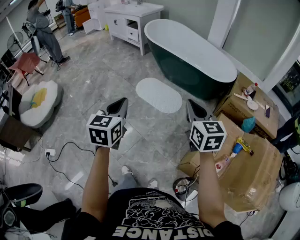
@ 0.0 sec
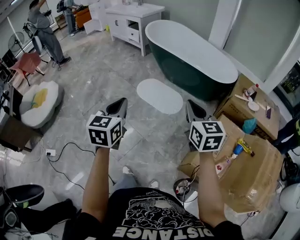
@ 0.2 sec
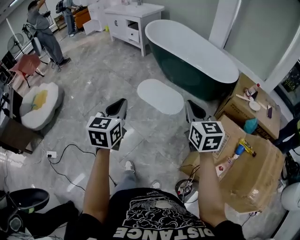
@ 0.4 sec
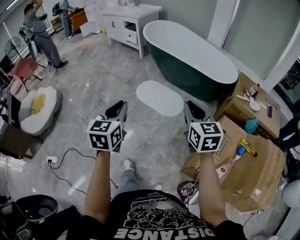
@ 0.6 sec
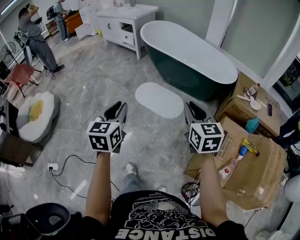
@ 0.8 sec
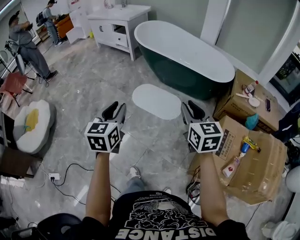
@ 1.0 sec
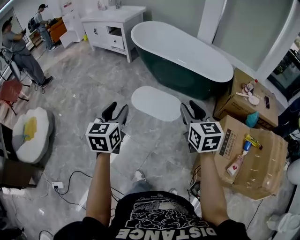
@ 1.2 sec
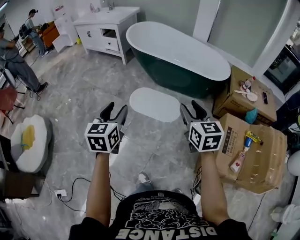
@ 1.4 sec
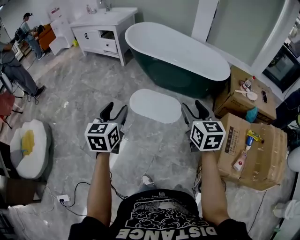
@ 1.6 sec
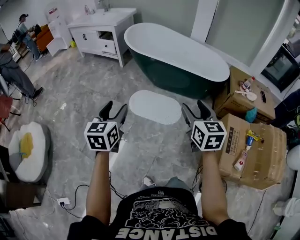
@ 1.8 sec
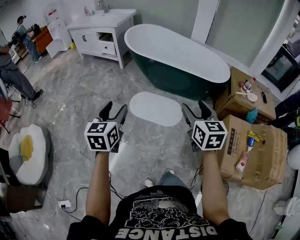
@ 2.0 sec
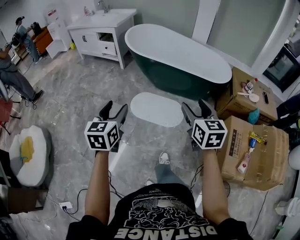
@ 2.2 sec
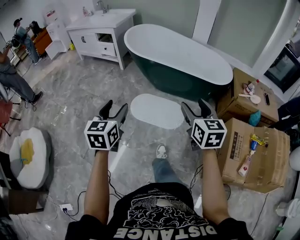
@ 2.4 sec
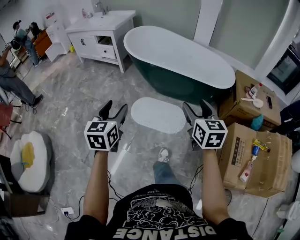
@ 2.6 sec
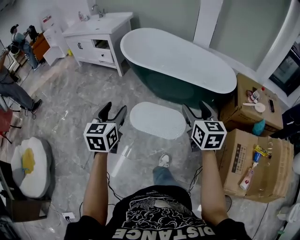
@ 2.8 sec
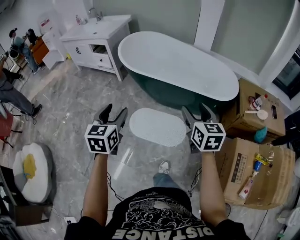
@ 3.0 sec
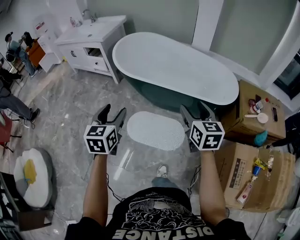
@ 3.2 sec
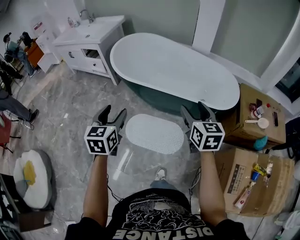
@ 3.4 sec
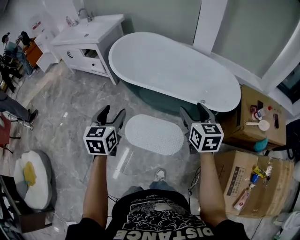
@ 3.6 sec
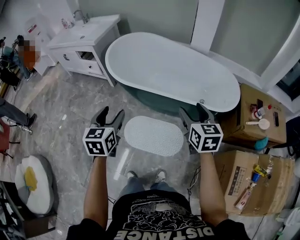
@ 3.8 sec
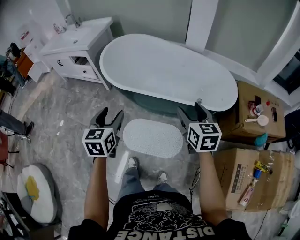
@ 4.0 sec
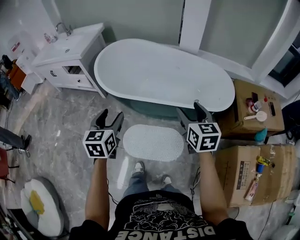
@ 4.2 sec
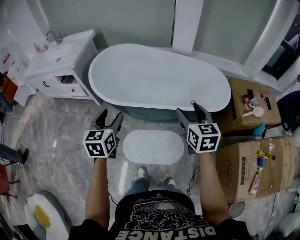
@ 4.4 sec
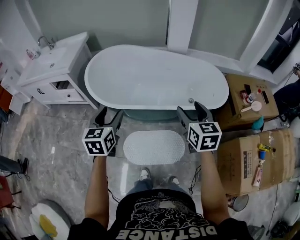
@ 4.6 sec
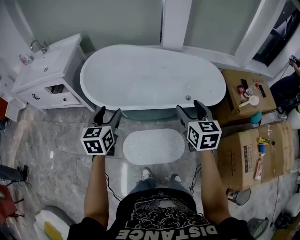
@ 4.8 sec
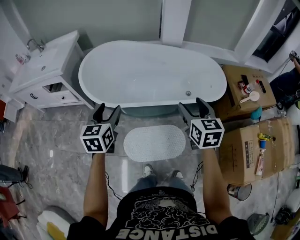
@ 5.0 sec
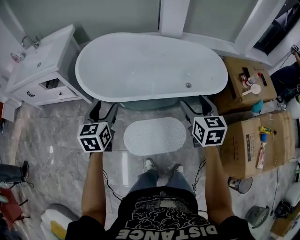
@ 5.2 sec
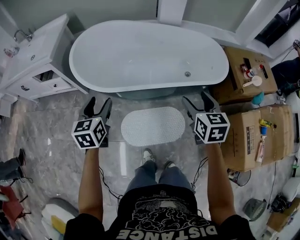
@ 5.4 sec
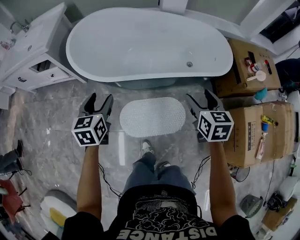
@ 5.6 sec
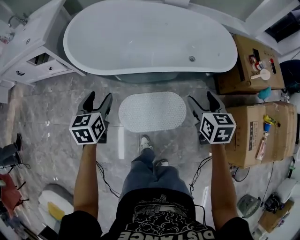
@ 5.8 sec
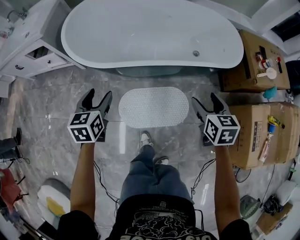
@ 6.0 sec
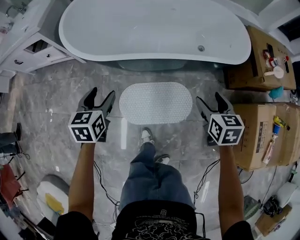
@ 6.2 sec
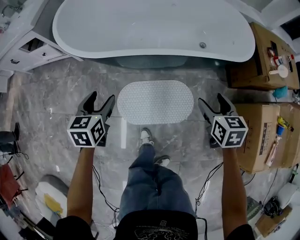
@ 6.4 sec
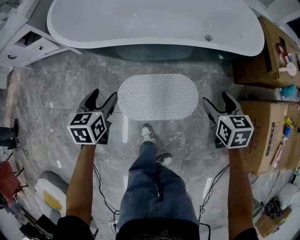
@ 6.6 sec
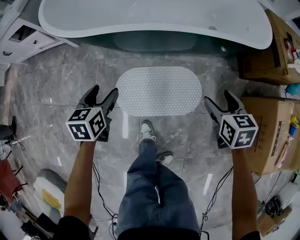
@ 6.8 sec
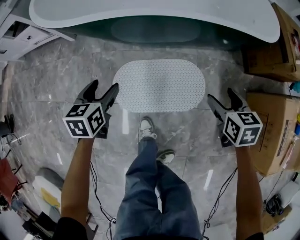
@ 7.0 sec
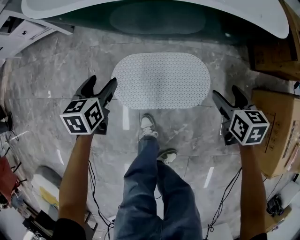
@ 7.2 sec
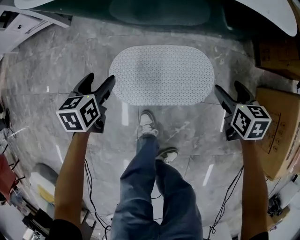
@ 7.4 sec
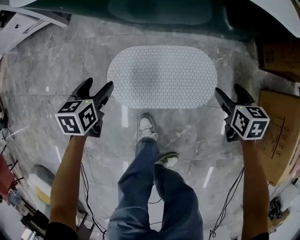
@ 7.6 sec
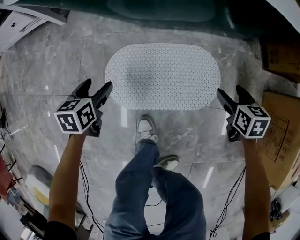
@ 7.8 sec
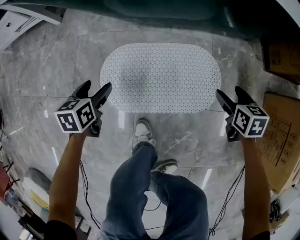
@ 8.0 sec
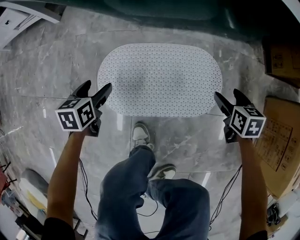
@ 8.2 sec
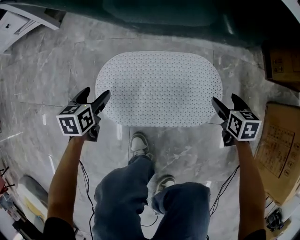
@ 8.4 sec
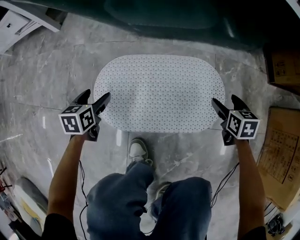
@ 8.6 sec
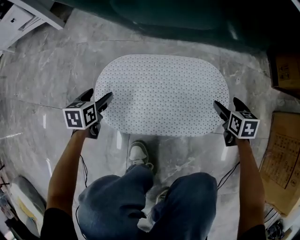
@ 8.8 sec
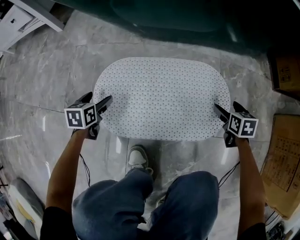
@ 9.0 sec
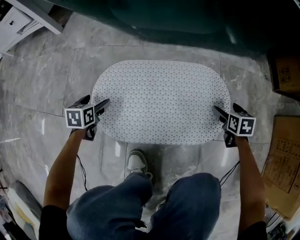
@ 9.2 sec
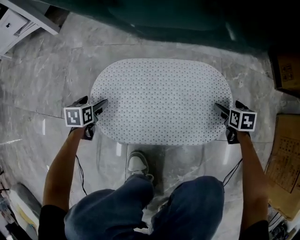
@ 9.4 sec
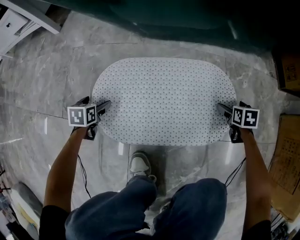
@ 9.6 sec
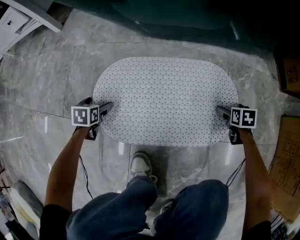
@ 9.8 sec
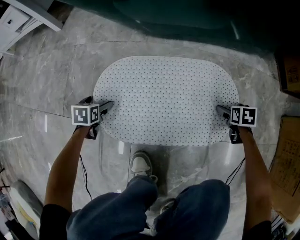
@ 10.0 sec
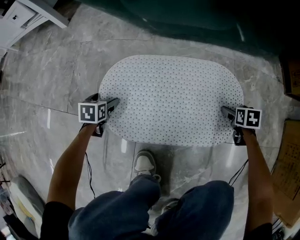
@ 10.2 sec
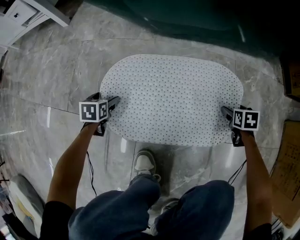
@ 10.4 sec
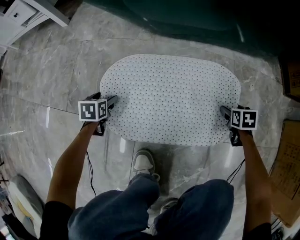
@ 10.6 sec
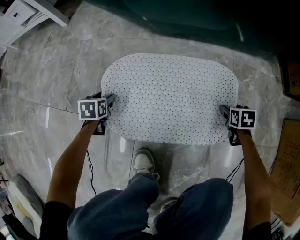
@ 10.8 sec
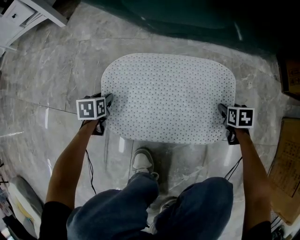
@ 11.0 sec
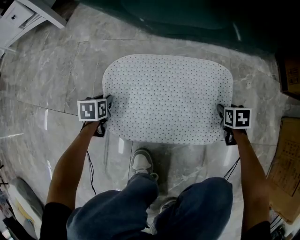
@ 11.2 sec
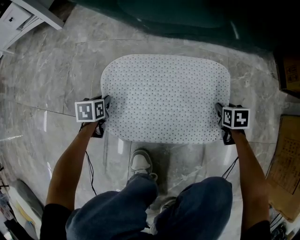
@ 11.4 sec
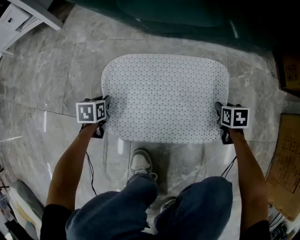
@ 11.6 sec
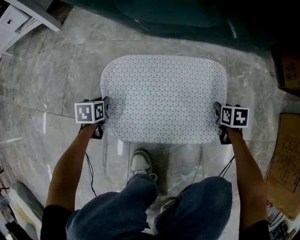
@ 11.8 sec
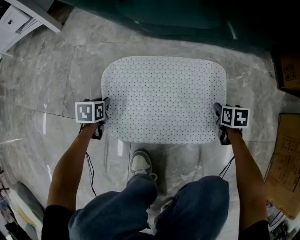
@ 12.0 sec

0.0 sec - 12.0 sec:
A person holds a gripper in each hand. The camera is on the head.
0.0 sec - 1.6 sec: Both grippers travel together forward and to the left, approximately 25 cm. The left gripper opens up. Meanwhile the right gripper opens up.
1.6 sec - 3.0 sec: The grippers both shift forward by about 25 cm.
3.0 sec - 4.4 sec: Both grippers move forward, approximately 25 cm.
4.4 sec - 6.0 sec: The grippers both shift downward by some 20 cm. The right gripper changes its angle by approximately 20 degrees.
6.0 sec - 7.6 sec: Both grippers move downward, roughly 40 cm.
7.6 sec - 9.0 sec: Both grippers move downward, roughly 25 cm.
9.0 sec - 10.4 sec: Both grippers move downward, about 10 cm.
10.4 sec - 12.0 sec: The left gripper closes up. Meanwhile the right gripper closes its fingers.

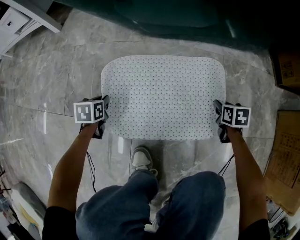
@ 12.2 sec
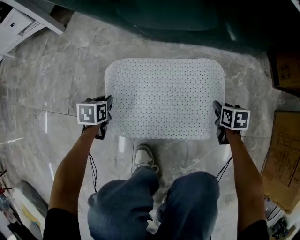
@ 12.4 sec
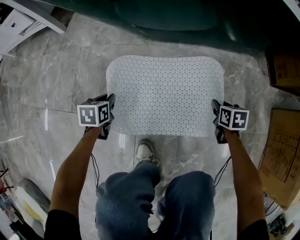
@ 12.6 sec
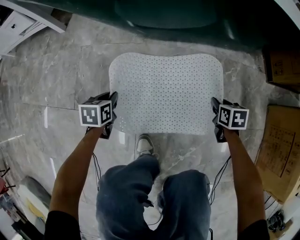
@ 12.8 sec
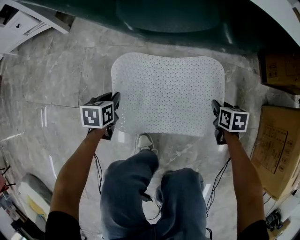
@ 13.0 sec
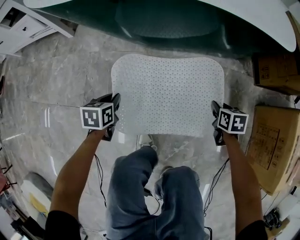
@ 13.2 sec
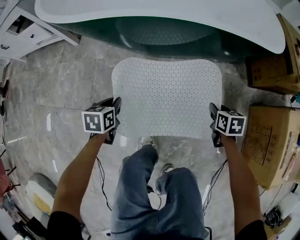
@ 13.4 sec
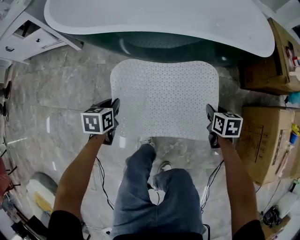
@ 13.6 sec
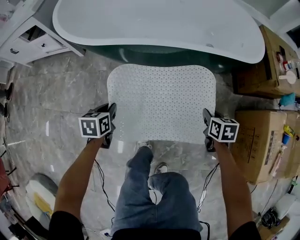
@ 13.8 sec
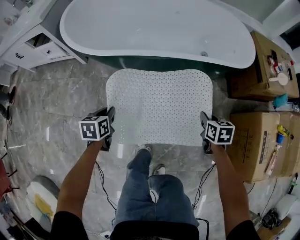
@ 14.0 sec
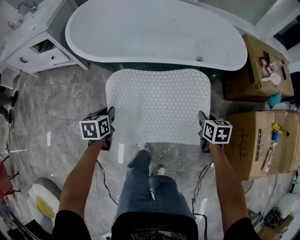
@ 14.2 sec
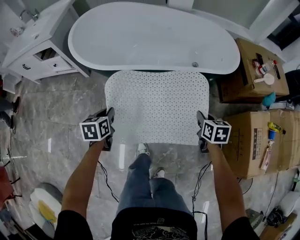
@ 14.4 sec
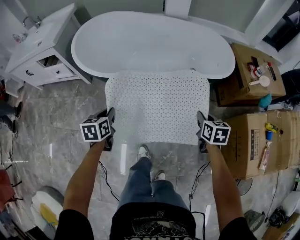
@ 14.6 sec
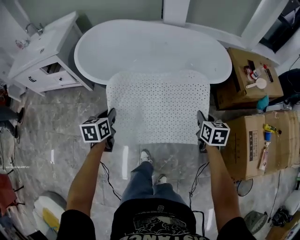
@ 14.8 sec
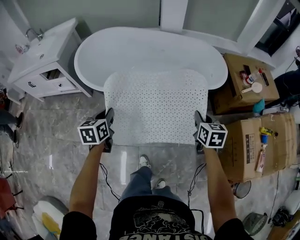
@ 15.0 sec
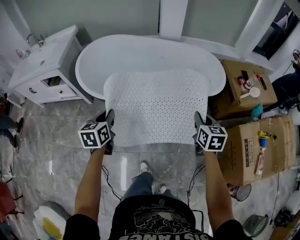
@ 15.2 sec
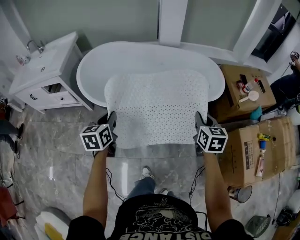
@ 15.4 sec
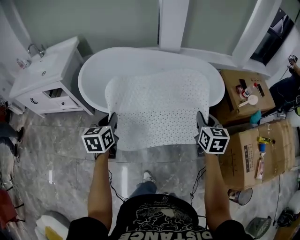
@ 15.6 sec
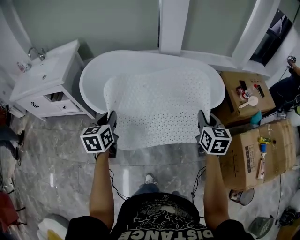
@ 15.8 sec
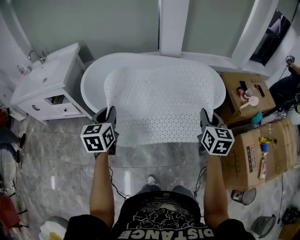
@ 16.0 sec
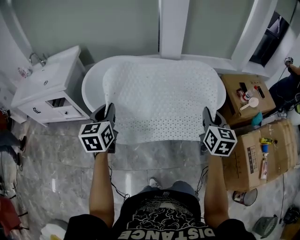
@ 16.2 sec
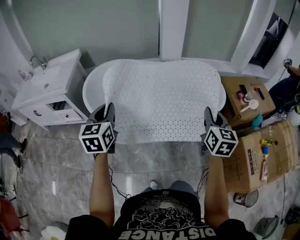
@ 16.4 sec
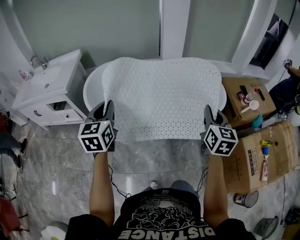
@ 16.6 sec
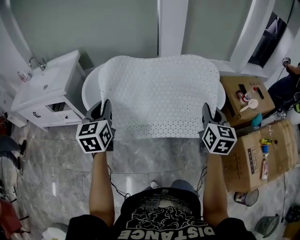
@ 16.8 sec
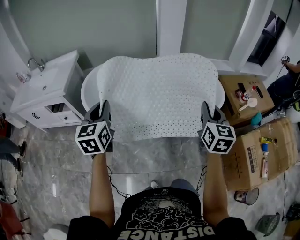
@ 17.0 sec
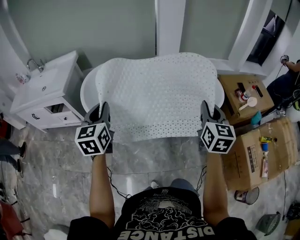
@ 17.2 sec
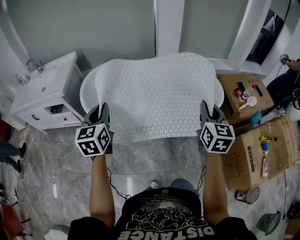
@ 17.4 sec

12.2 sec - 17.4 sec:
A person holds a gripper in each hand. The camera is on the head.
12.2 sec - 14.0 sec: Both grippers move upward, approximately 50 cm.
14.0 sec - 15.6 sec: The grippers both shift upward by approximately 35 cm. The left gripper rotates approximately 20 degrees. The right gripper turns by roughly 30 degrees.
15.6 sec - 17.4 sec: The left gripper is displaced upward and forward by about 15 cm, while the right gripper moves upward, some 10 cm.

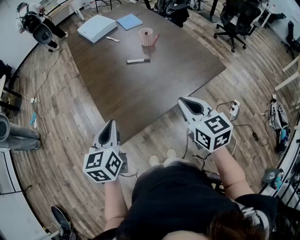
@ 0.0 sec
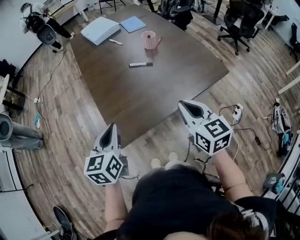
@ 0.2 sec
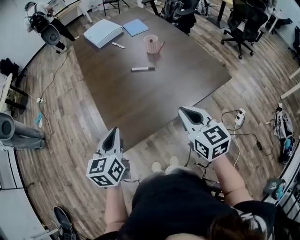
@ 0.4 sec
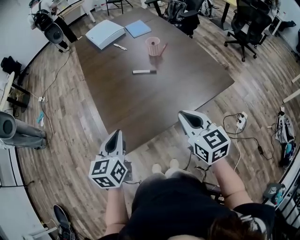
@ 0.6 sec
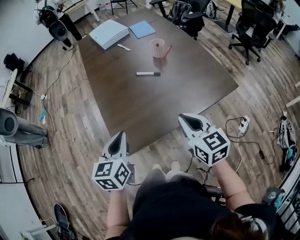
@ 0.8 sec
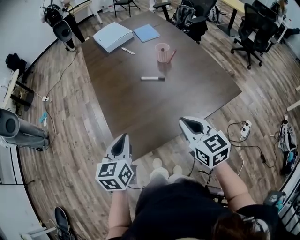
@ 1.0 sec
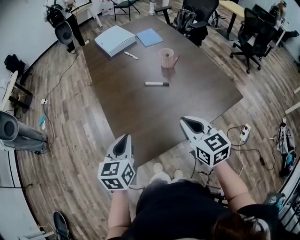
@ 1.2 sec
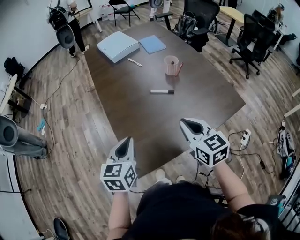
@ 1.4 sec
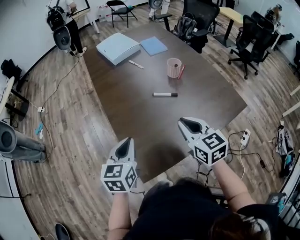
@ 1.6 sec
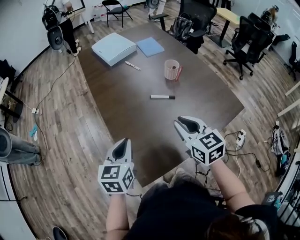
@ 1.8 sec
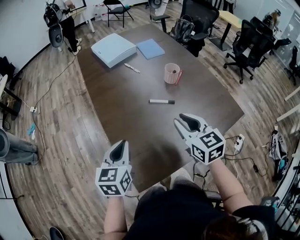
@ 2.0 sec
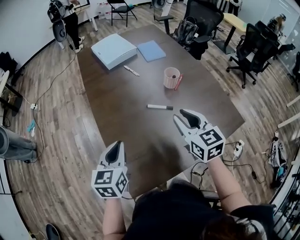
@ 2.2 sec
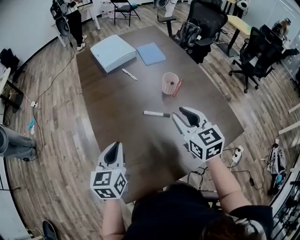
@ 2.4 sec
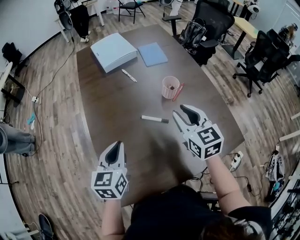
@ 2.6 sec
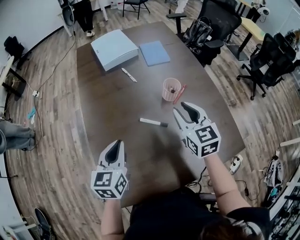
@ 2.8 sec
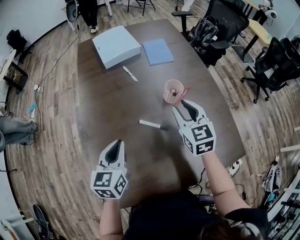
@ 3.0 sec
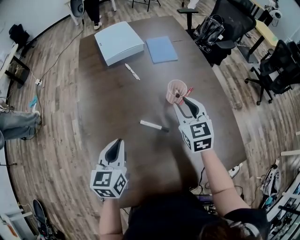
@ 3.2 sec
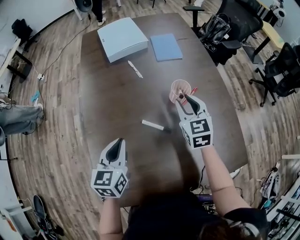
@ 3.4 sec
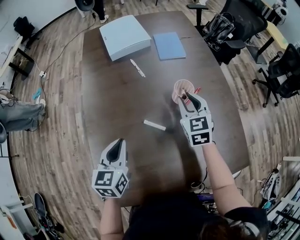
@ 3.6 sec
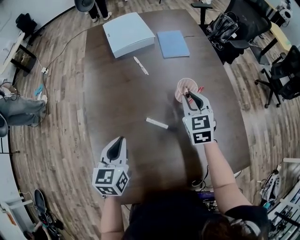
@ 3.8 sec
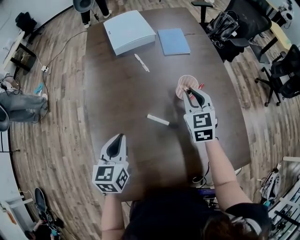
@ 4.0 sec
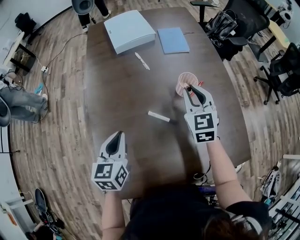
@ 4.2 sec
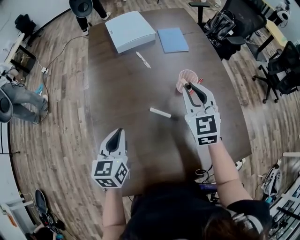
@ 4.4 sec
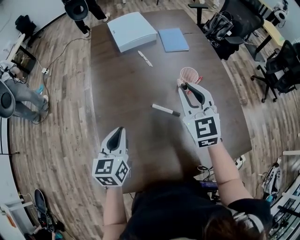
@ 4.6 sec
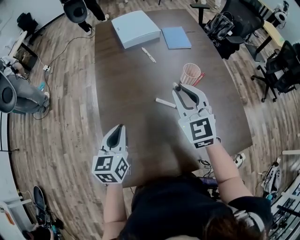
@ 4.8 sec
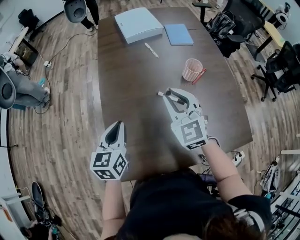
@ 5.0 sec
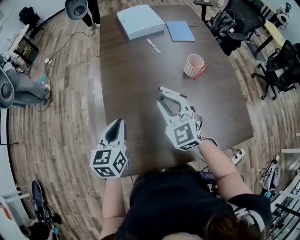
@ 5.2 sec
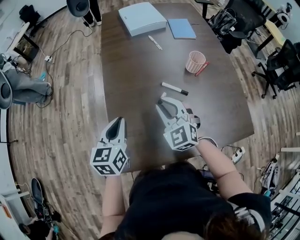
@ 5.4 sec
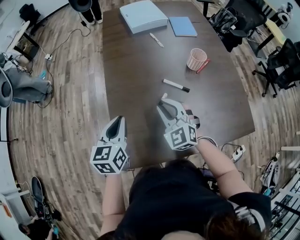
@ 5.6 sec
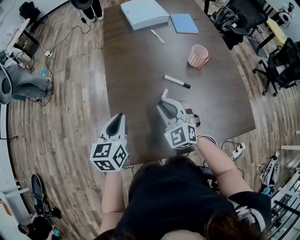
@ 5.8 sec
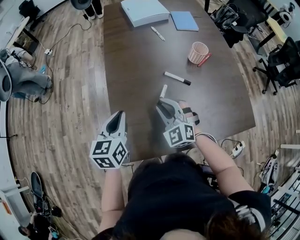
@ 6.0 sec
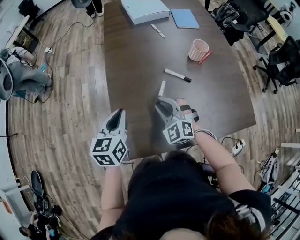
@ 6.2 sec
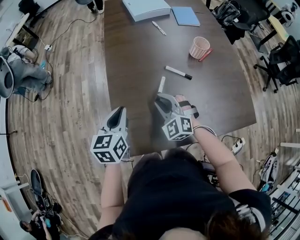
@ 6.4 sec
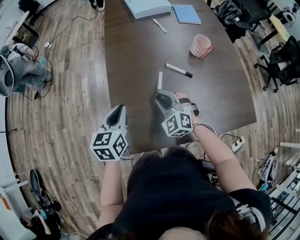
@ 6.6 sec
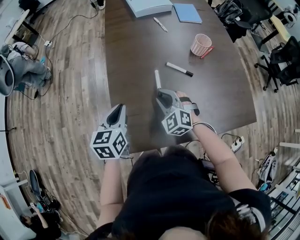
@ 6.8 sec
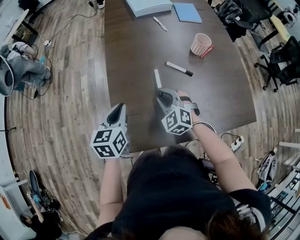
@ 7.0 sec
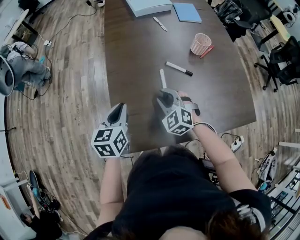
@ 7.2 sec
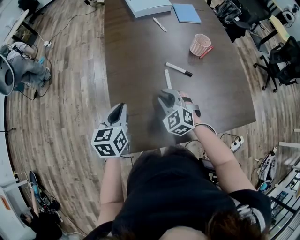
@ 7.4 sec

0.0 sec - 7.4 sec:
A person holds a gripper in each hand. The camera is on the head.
0.0 sec - 1.4 sec: The right gripper moves forward and to the left, about 15 cm. The left gripper is displaced forward by approximately 10 cm.
1.4 sec - 3.0 sec: The right gripper moves forward, roughly 30 cm, and opens. The left gripper heads forward, covering some 20 cm.
4.4 sec - 6.0 sec: The right gripper shifts roughly 30 cm to the left, backward and downward, and swivels roughly 30 degrees, while the left gripper moves backward and to the left, about 15 cm.
6.0 sec - 7.4 sec: The grippers move only a little.
